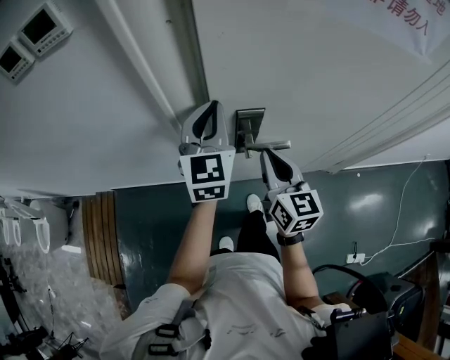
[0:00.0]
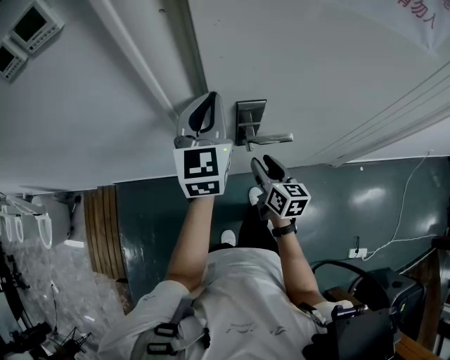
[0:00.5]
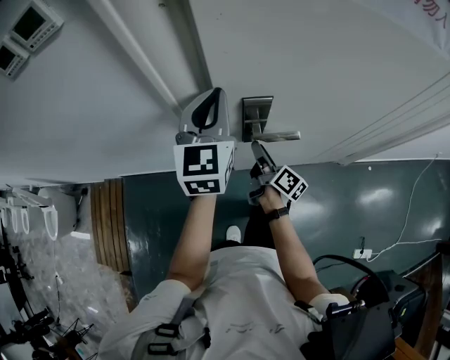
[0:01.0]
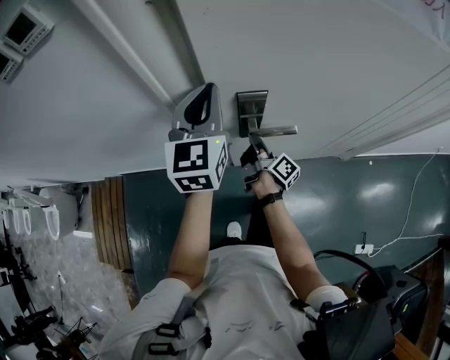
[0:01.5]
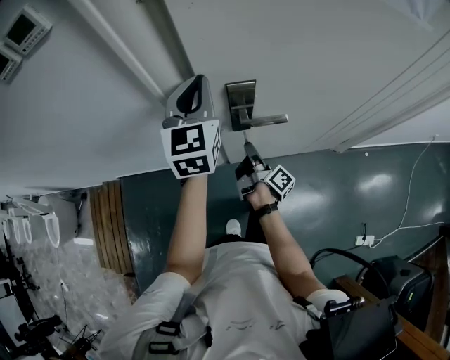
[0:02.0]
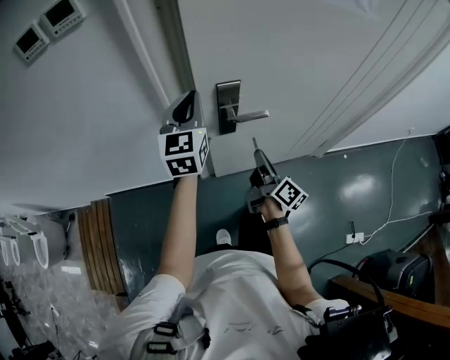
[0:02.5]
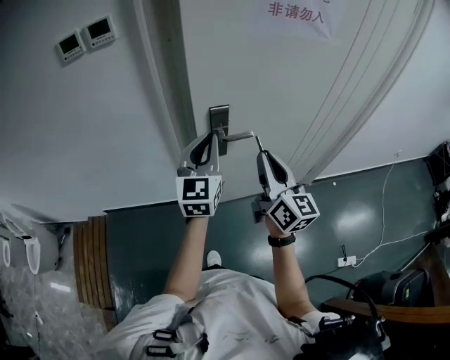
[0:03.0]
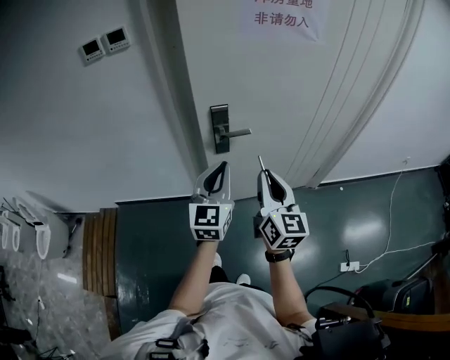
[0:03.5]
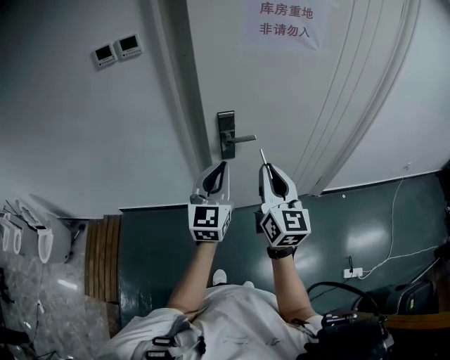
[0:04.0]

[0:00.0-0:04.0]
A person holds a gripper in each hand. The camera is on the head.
0:00.0 to 0:02.0: The right gripper goes about 20 cm downward, rolls clockwise, seen from behind, by about 80 degrees, and opens, then closes once more.
0:02.0 to 0:04.0: The right gripper moves upward and backward, roughly 40 cm, and rotates around the line of its fingers by roughly 80 degrees, counterclockwise from behind. Meanwhile the left gripper shifts some 35 cm backward.

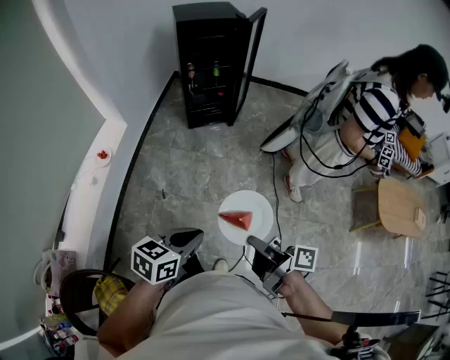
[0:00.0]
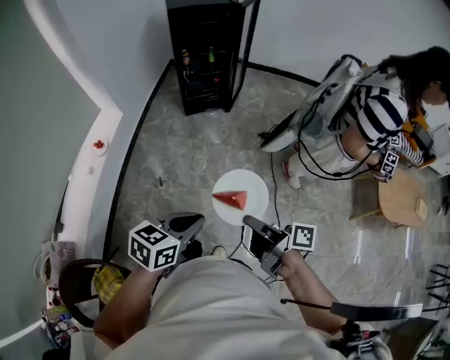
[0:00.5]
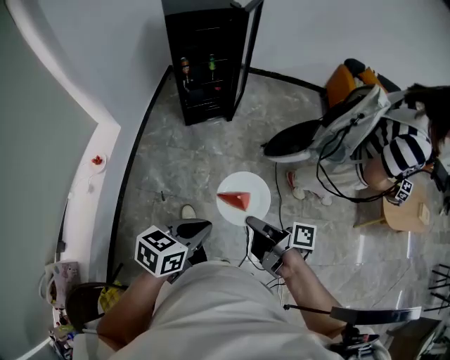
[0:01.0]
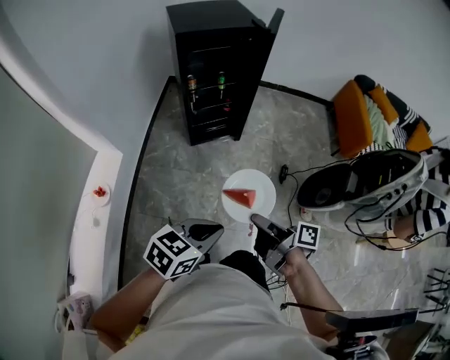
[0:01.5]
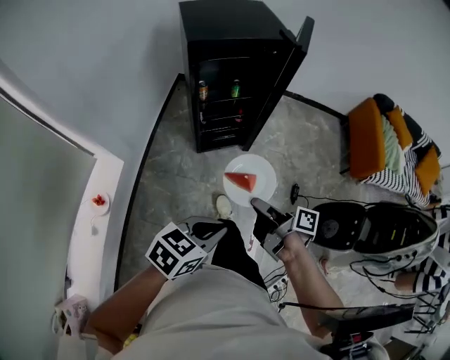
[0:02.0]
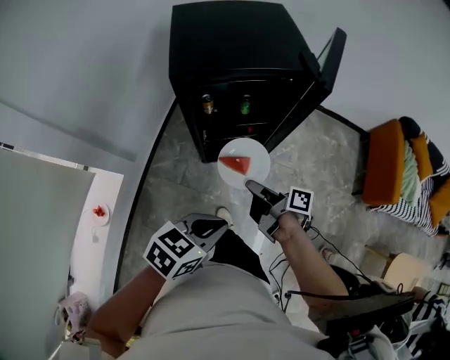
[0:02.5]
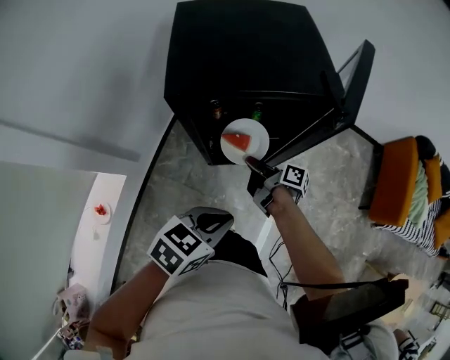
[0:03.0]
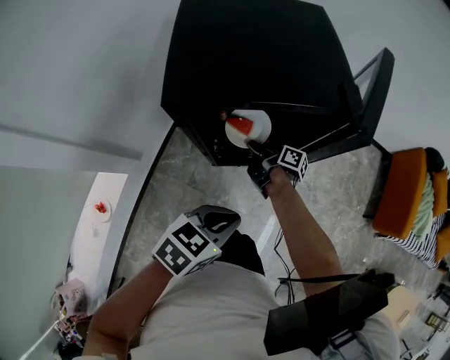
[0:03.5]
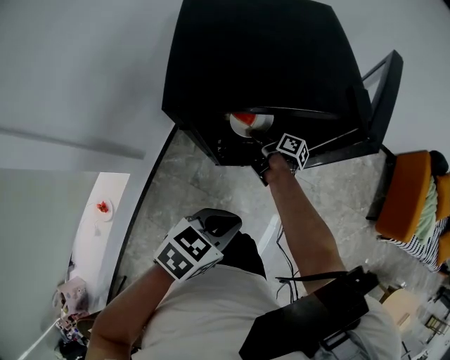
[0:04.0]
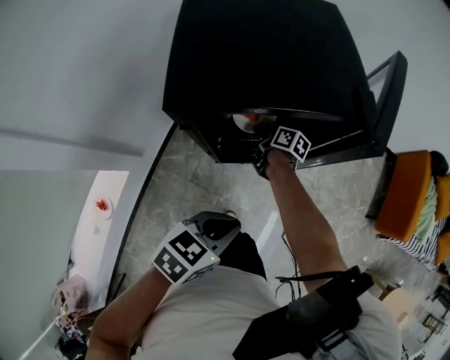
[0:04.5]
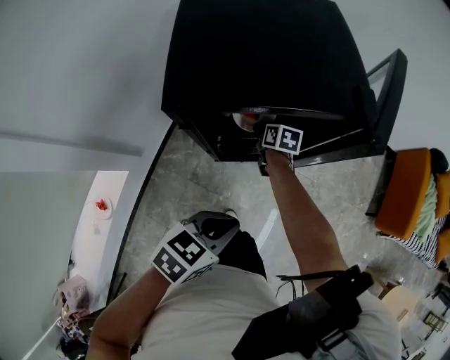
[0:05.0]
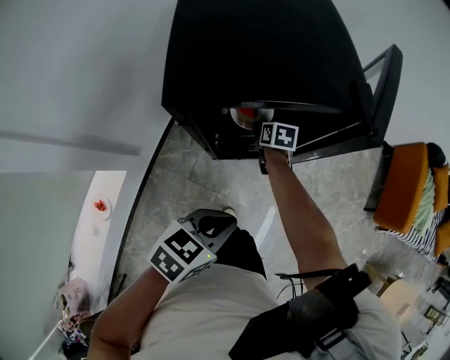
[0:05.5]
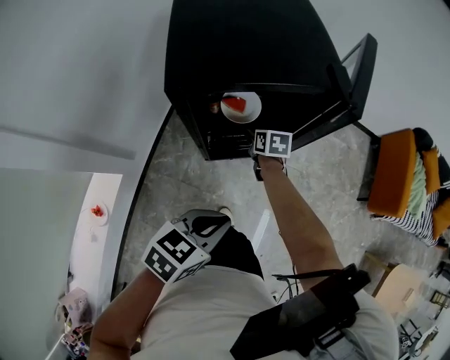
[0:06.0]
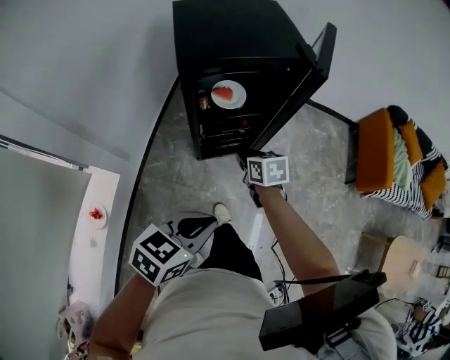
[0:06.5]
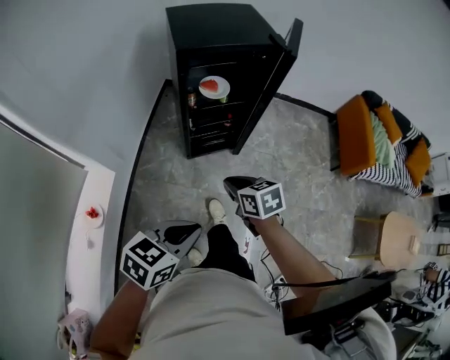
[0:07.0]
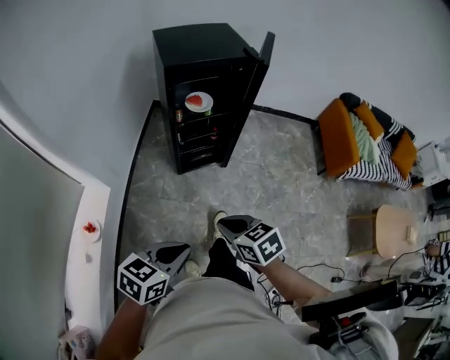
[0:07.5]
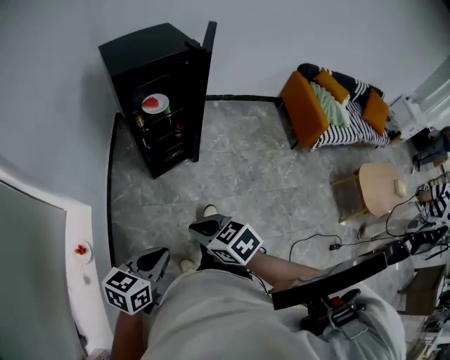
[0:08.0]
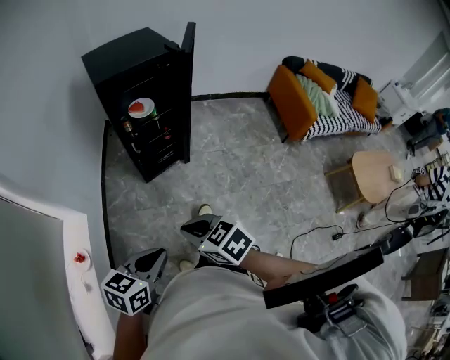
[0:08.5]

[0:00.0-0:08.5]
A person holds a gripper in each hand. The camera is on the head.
0:00.0 to 0:02.0: The pair of grippers is taken forward, about 50 cm.
0:02.0 to 0:04.0: Both grippers travel together forward, some 40 cm.
0:04.0 to 0:06.5: The left gripper is displaced backward by approximately 20 cm; the right gripper heads backward and upward, covering approximately 25 cm, rotates around the line of its fingers by about 60 degrees, counterclockwise from behind, and opens, then closes again.
0:06.5 to 0:08.5: The right gripper shifts some 40 cm backward, while the left gripper moves backward, about 30 cm.

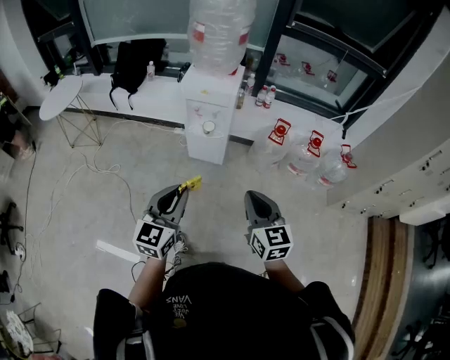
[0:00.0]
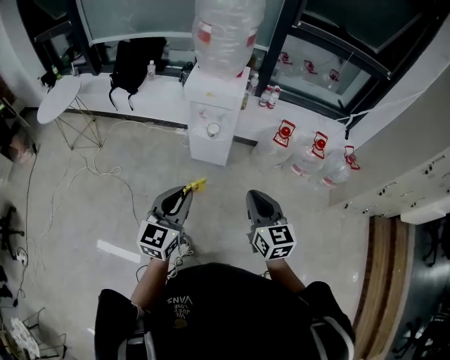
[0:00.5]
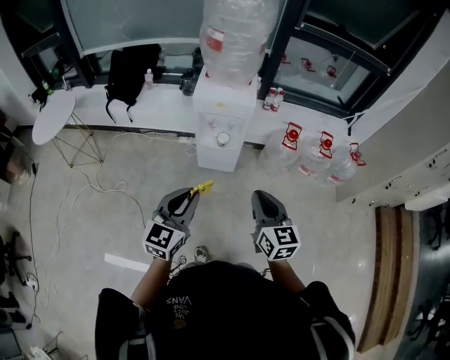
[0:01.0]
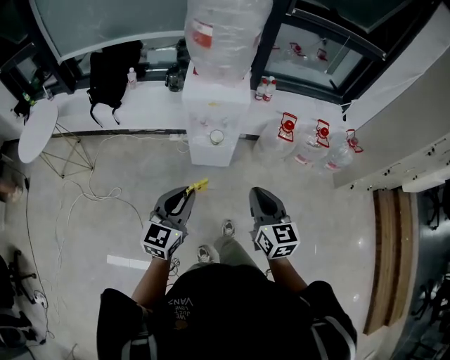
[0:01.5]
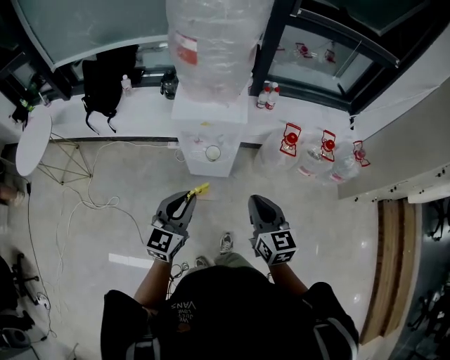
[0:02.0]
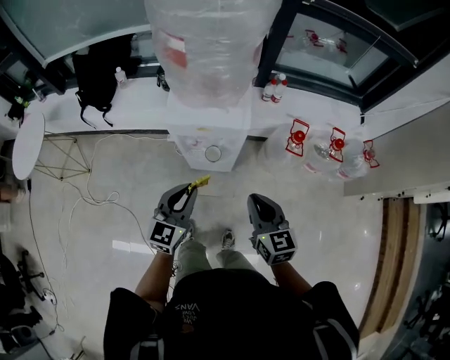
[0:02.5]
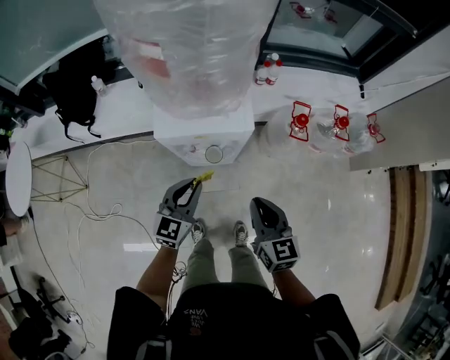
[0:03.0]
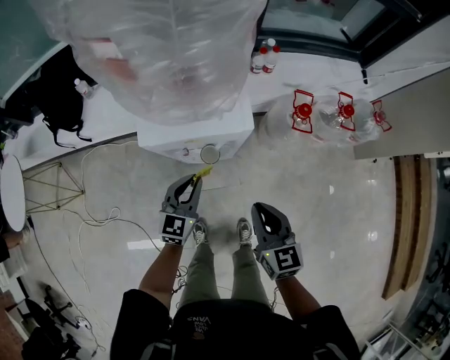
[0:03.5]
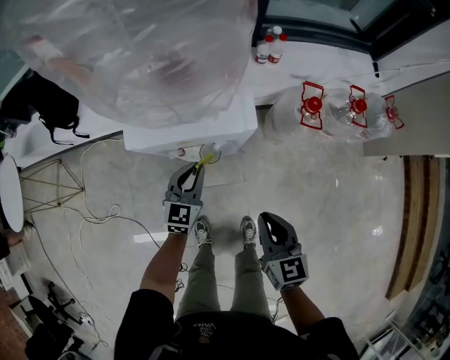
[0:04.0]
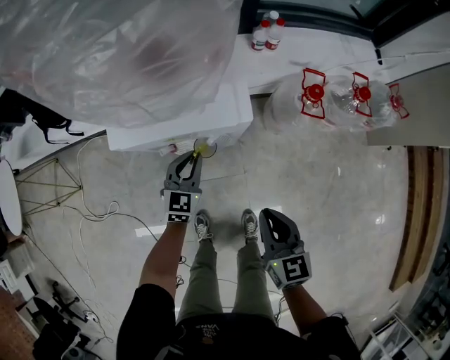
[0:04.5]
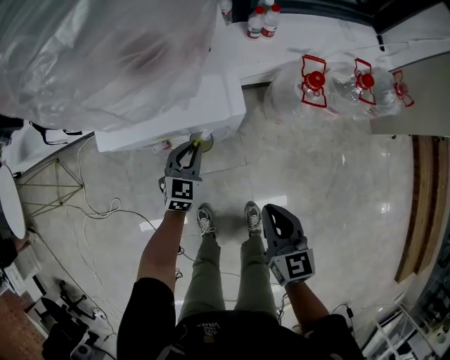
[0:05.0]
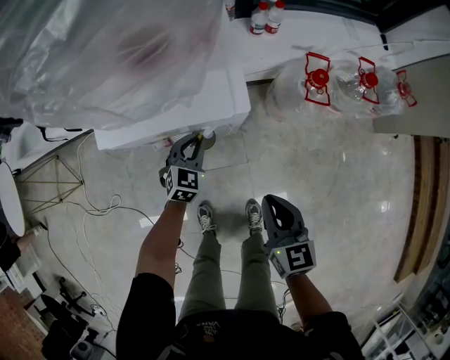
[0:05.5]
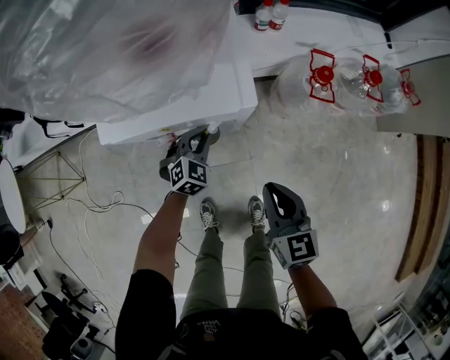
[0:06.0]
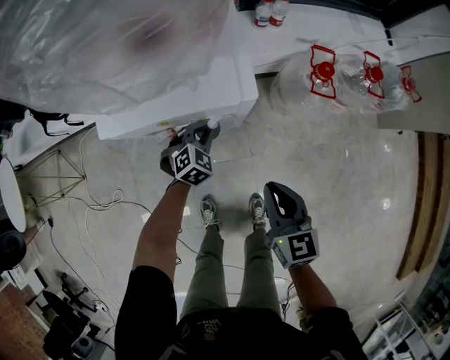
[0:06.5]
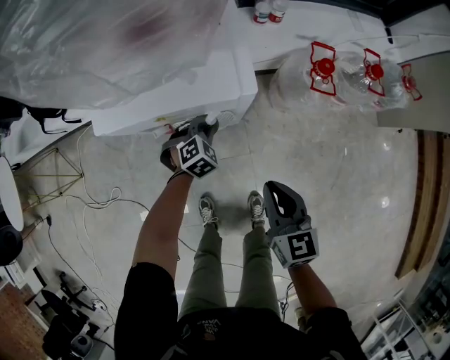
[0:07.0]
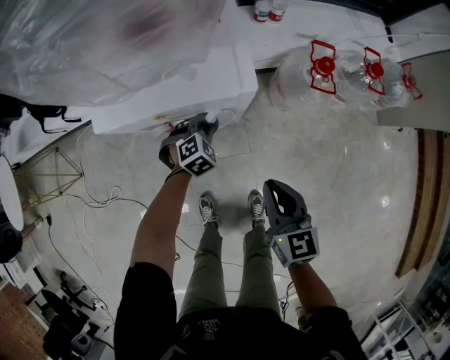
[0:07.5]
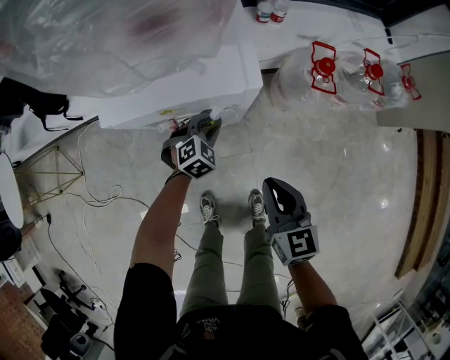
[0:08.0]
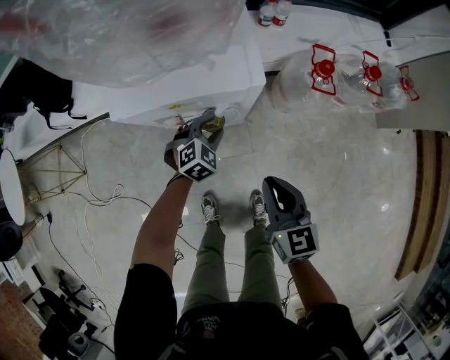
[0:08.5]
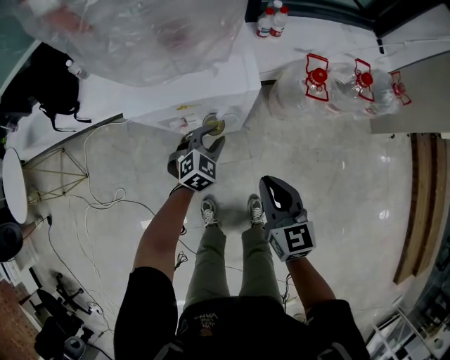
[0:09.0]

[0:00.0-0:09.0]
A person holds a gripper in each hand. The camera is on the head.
0:00.0 to 0:02.0: The left gripper travels forward by about 30 cm. The right gripper is displaced forward and to the left by some 30 cm.
0:02.0 to 0:04.5: The left gripper heads downward and forward, covering about 50 cm; the right gripper shifts roughly 25 cm downward and forward.
0:04.5 to 0:07.0: The left gripper is displaced downward by some 10 cm, and angles its fingers downward, by roughly 30 degrees.
0:07.0 to 0:09.0: The right gripper goes some 5 cm upward, while the left gripper is displaced upward by about 10 cm, and opens.

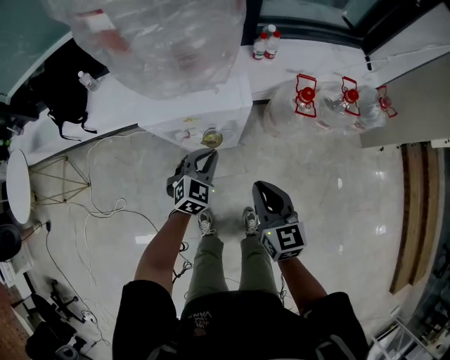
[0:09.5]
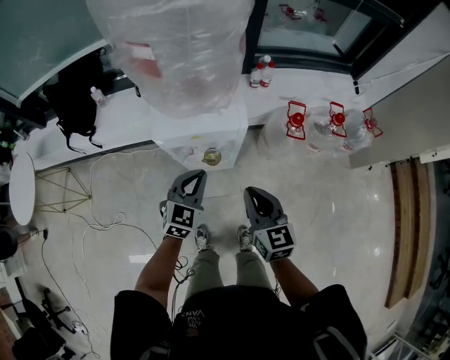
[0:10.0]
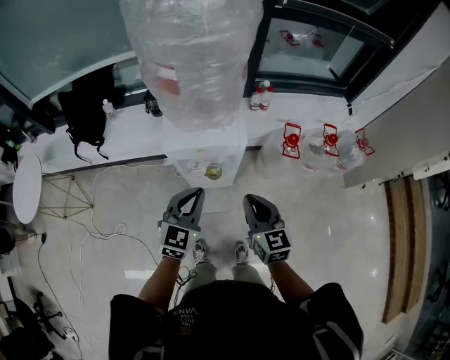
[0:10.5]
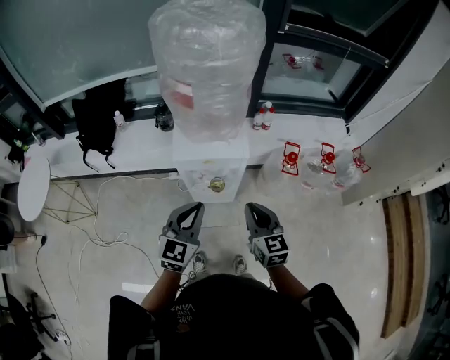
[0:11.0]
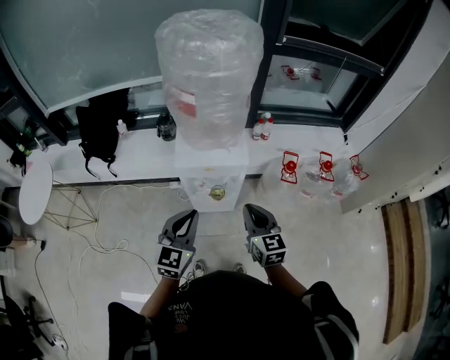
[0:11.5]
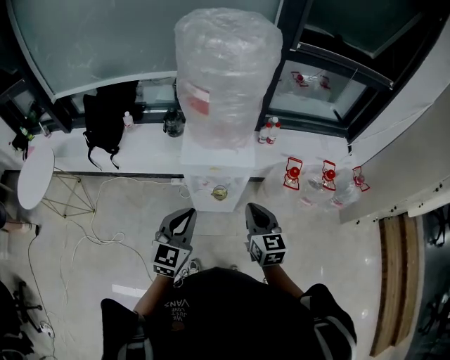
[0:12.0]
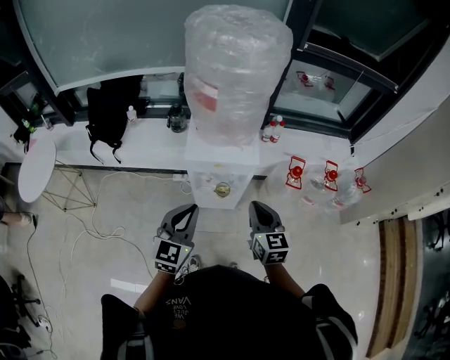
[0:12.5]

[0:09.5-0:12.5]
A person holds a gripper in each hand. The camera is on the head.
0:09.5 to 0:11.0: The right gripper heads upward, covering approximately 15 cm. Meanwhile the left gripper goes approximately 30 cm upward and backward, and changes its angle by approximately 30 degrees.
0:11.0 to 0:12.5: The left gripper shifts by approximately 5 cm.

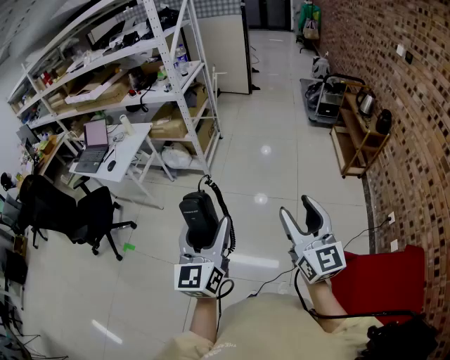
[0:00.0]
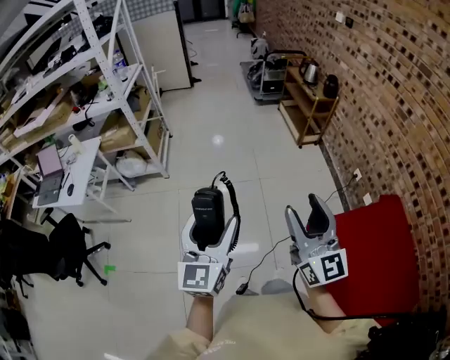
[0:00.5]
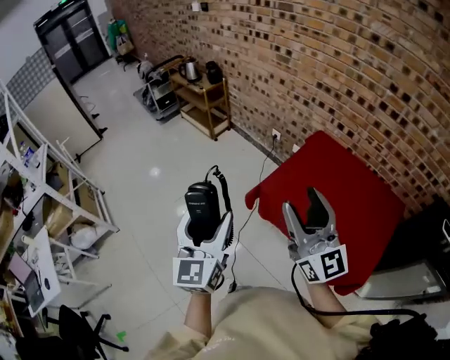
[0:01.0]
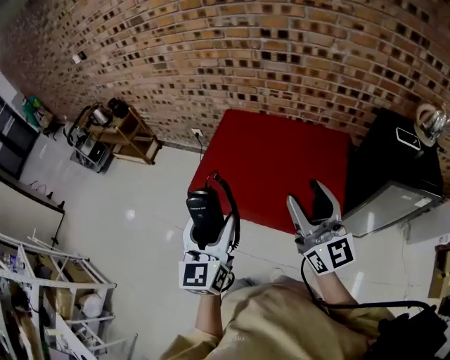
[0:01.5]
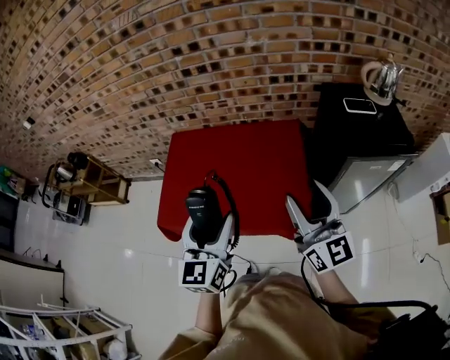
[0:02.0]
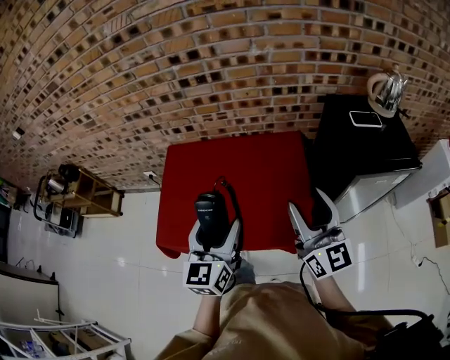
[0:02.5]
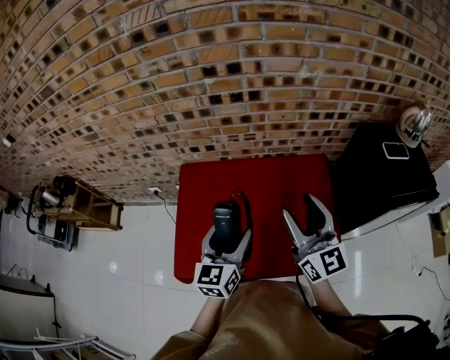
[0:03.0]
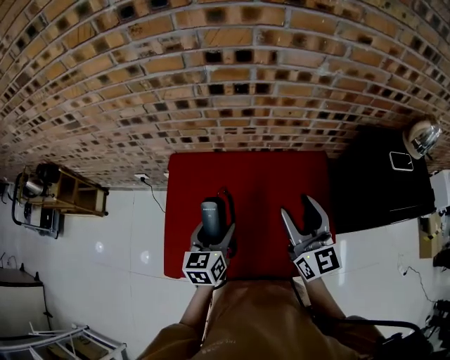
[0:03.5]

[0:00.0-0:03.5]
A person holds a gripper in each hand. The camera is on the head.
0:00.0 to 0:02.0: The pair of grippers is taken approximately 90 cm. The left gripper swivels roughly 90 degrees. Meanwhile the right gripper swivels about 80 degrees.
0:02.0 to 0:03.5: The right gripper heads forward, to the left and downward, covering approximately 40 cm. Meanwhile the left gripper is displaced forward, downward and to the left by some 50 cm, and rotates approximately 20 degrees.
